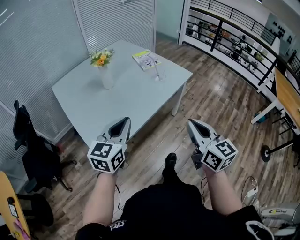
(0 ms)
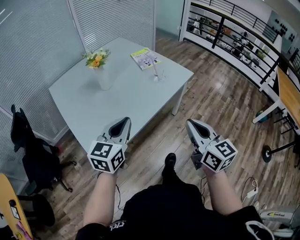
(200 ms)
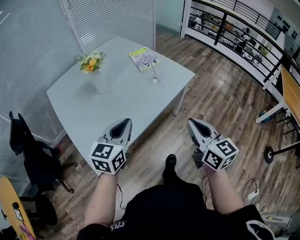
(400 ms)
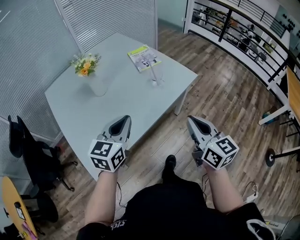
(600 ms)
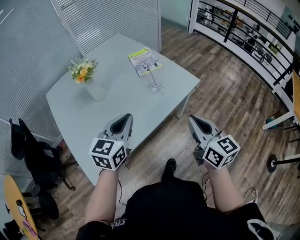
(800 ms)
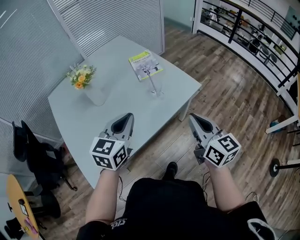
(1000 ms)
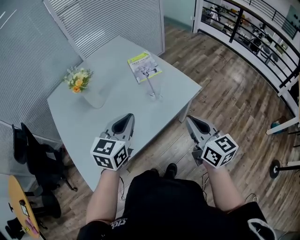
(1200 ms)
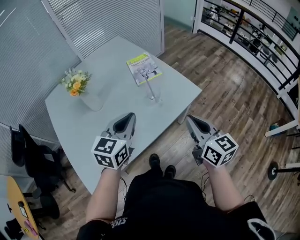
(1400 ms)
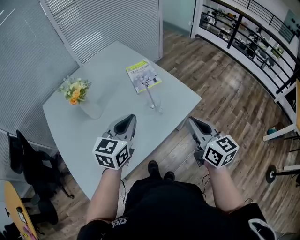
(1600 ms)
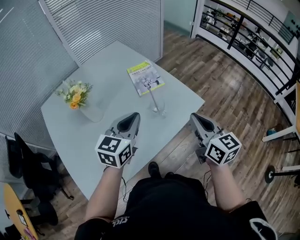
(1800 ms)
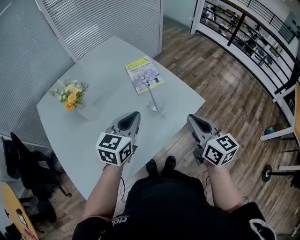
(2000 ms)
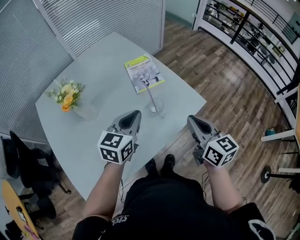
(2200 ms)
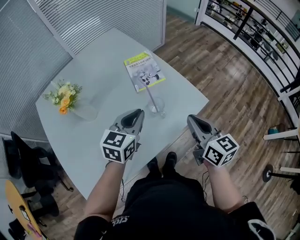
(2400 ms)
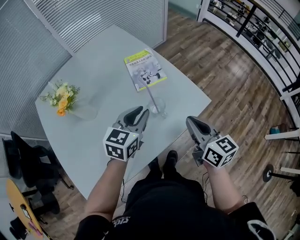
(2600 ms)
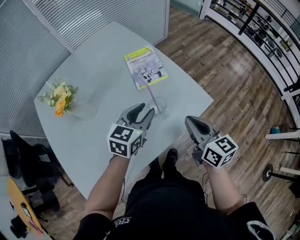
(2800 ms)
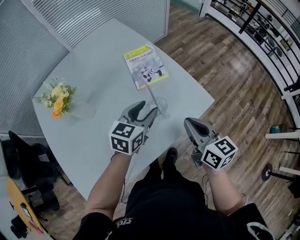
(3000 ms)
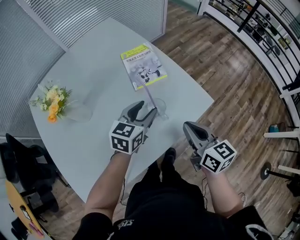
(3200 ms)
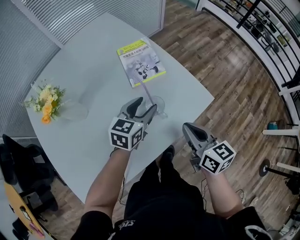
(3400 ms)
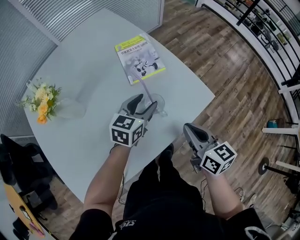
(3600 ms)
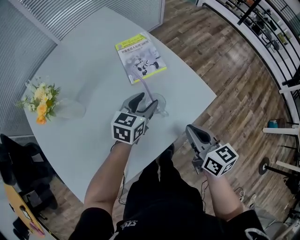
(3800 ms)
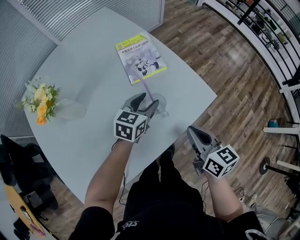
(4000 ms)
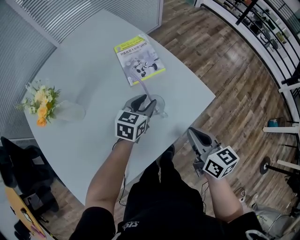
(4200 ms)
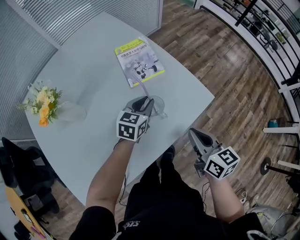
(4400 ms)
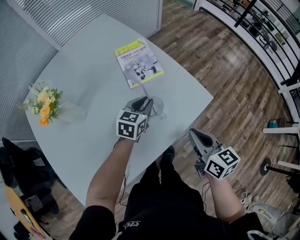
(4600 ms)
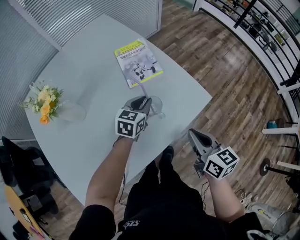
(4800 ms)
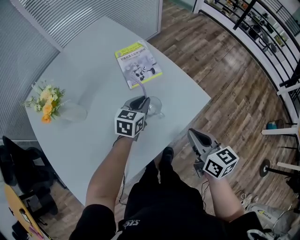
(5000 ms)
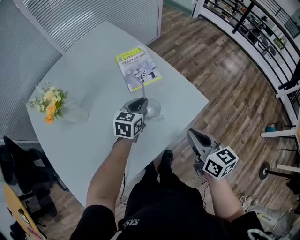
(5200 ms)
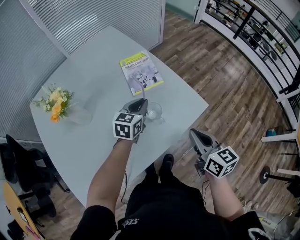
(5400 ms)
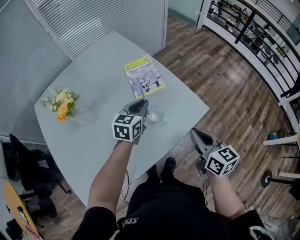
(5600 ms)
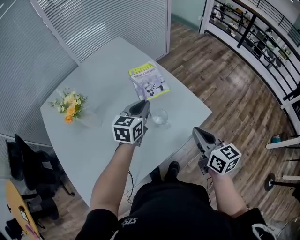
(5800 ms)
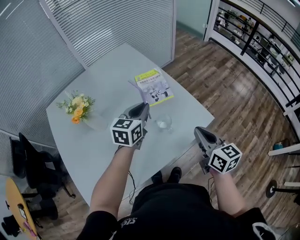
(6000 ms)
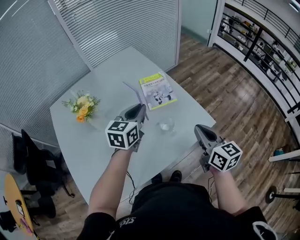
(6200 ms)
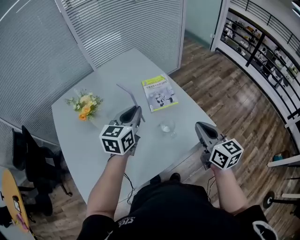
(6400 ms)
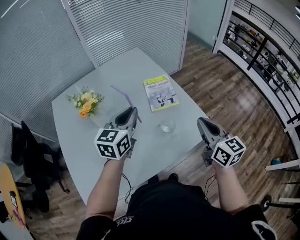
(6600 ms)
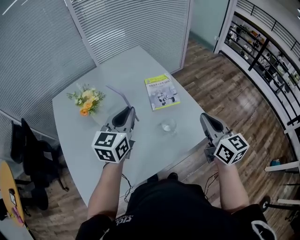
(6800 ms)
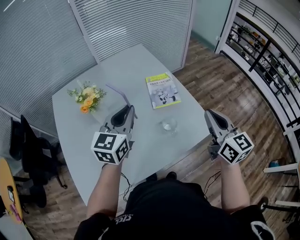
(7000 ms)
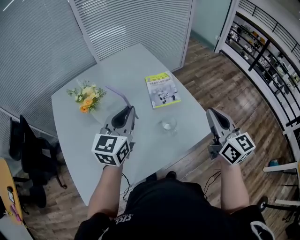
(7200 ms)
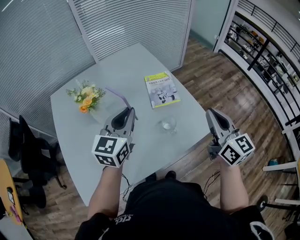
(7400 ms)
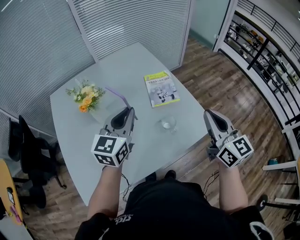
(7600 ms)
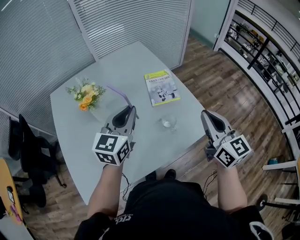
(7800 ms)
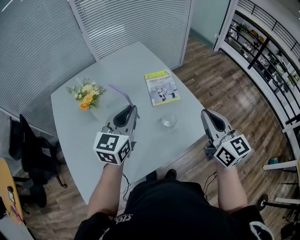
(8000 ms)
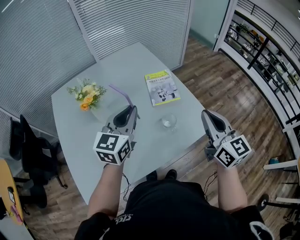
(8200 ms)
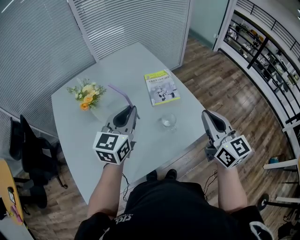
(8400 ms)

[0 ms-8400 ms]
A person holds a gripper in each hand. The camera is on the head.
0 ms to 1400 ms: The right gripper travels forward by approximately 35 cm, while the left gripper moves forward and to the right, about 35 cm.
1400 ms to 2800 ms: Both grippers travel together forward and downward, approximately 20 cm. The left gripper opens its fingers.
2800 ms to 4200 ms: The left gripper shifts roughly 15 cm downward and forward. Meanwhile the right gripper shifts some 5 cm downward.
4200 ms to 5600 ms: Both grippers travel together upward, about 10 cm. The left gripper closes up.
5600 ms to 7000 ms: The right gripper shifts roughly 15 cm upward and forward, and swivels roughly 20 degrees; the left gripper shifts about 20 cm upward and to the left, and rotates some 20 degrees.
7000 ms to 8400 ms: The grippers make only small movements.

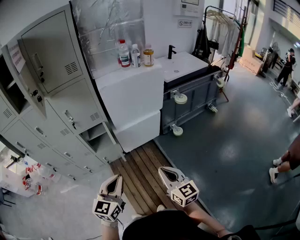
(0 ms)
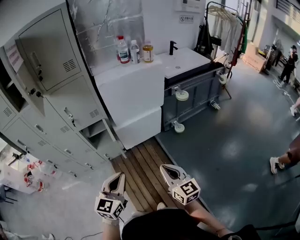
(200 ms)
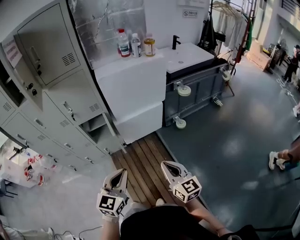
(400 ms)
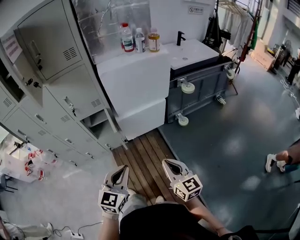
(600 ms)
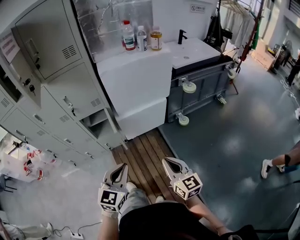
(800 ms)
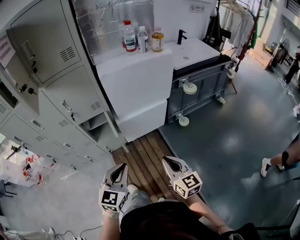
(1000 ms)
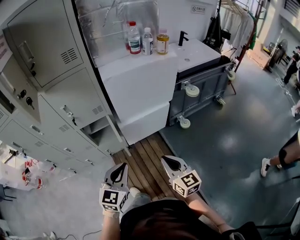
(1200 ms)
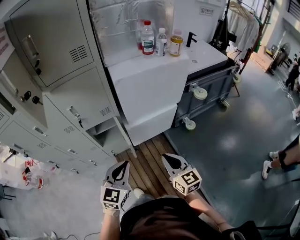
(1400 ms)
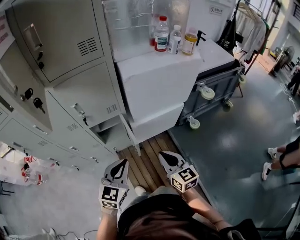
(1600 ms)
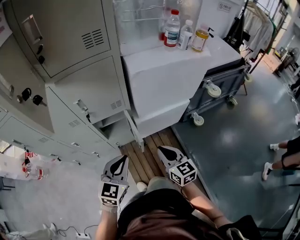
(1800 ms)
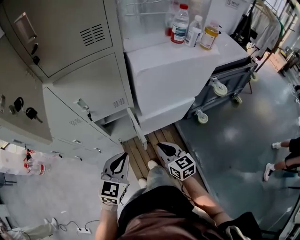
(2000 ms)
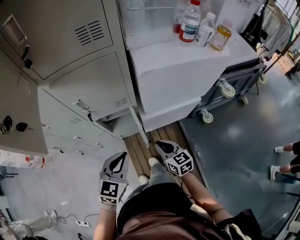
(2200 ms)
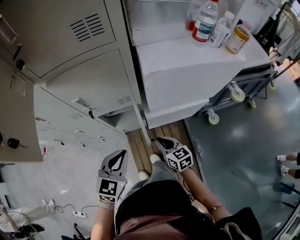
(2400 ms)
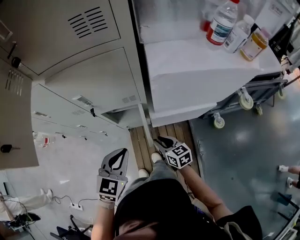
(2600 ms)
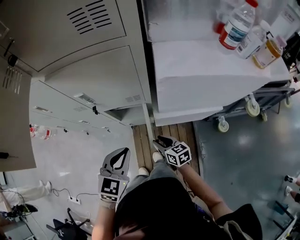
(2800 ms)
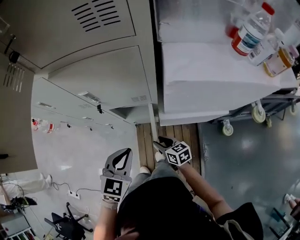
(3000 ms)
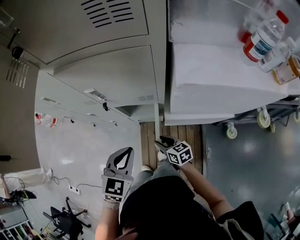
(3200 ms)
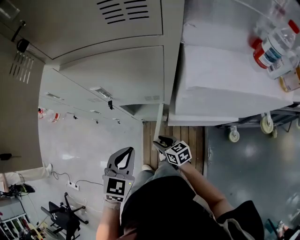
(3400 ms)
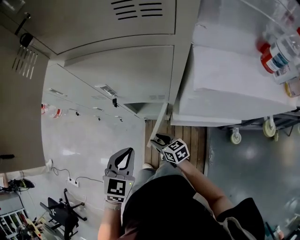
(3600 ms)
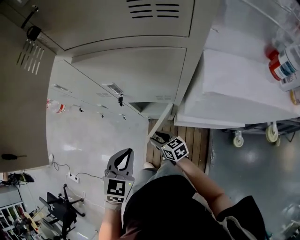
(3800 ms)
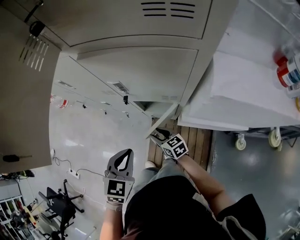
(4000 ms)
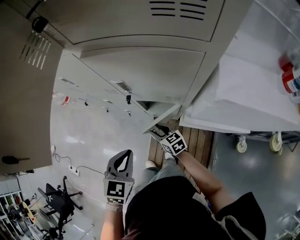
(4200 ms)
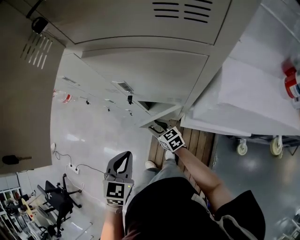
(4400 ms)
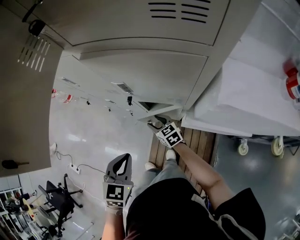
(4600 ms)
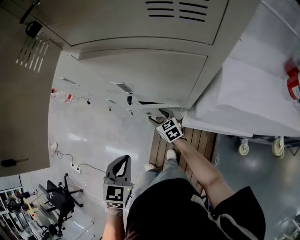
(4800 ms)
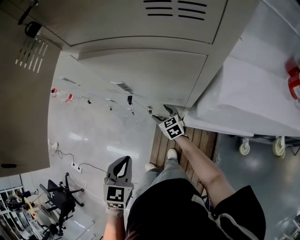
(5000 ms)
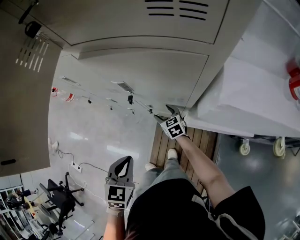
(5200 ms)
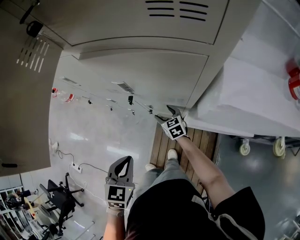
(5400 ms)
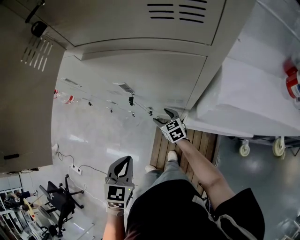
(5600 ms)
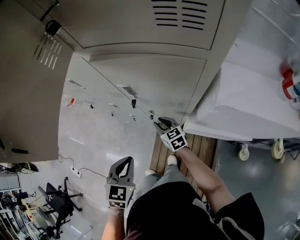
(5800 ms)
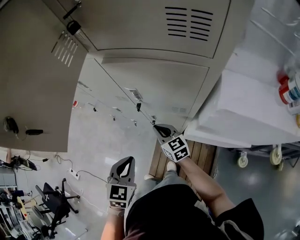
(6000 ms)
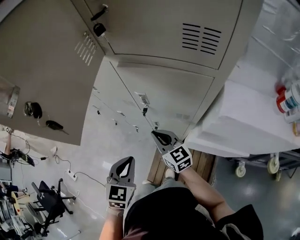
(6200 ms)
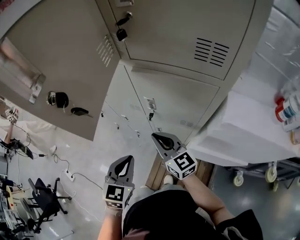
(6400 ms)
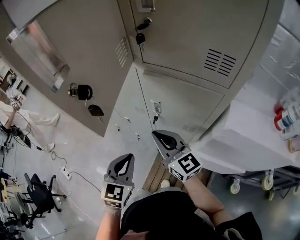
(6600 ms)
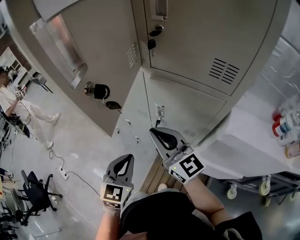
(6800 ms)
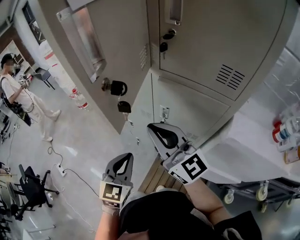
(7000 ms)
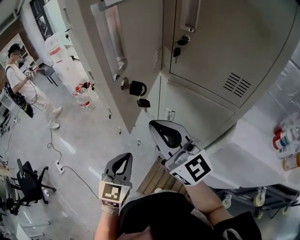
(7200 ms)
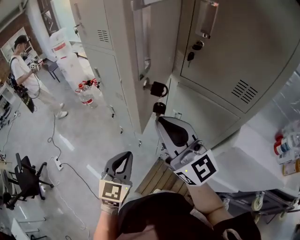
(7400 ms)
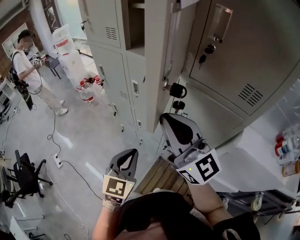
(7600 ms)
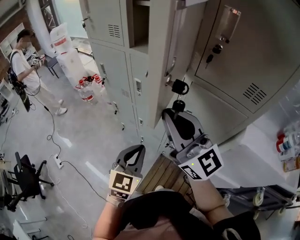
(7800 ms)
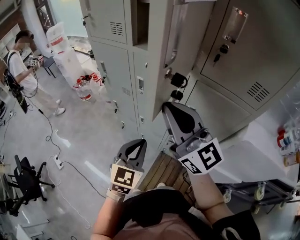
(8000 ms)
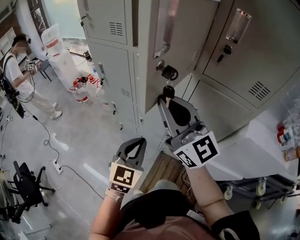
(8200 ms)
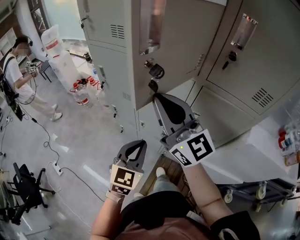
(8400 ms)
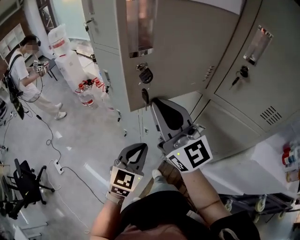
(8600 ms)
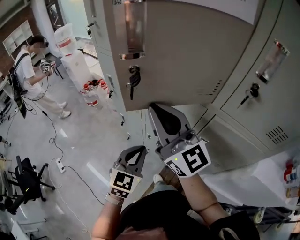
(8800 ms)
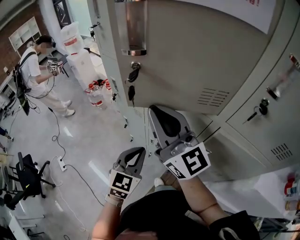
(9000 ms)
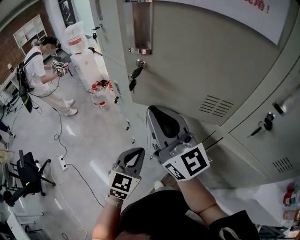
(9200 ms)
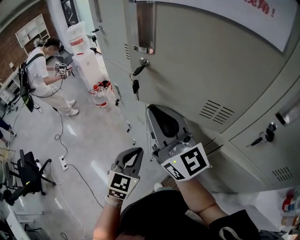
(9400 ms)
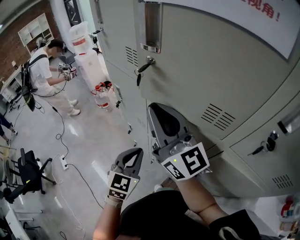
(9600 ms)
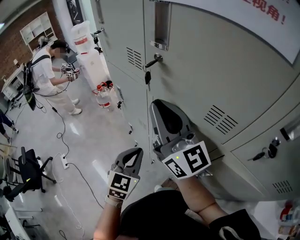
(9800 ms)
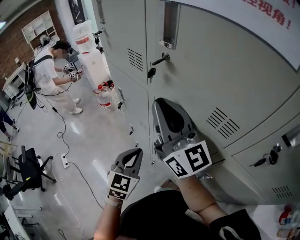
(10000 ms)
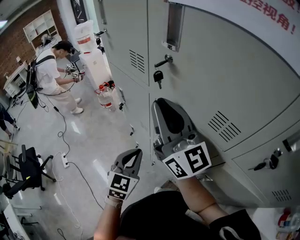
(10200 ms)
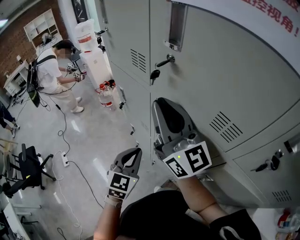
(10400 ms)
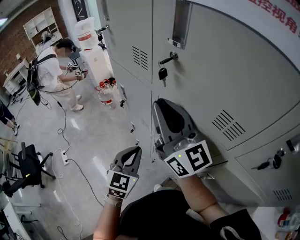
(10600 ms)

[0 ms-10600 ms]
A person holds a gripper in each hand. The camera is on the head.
0 ms to 1600 ms: The two grippers go some 25 cm forward and to the left.
1600 ms to 3000 ms: The right gripper moves downward, some 20 cm, changes its angle by about 40 degrees, and opens up; the left gripper moves approximately 15 cm, and turns by approximately 20 degrees.
3000 ms to 4600 ms: The right gripper heads forward and to the left, covering about 20 cm, and changes its angle by about 30 degrees. Meanwhile the left gripper goes about 10 cm to the left, and rotates some 20 degrees.
4600 ms to 6000 ms: The right gripper goes roughly 10 cm upward, and closes up.
6000 ms to 7600 ms: The left gripper shifts approximately 15 cm upward and to the left, and rotates roughly 20 degrees. The right gripper moves upward, about 40 cm, and angles its fingers upward, by about 40 degrees.
7600 ms to 9000 ms: The right gripper shifts about 20 cm forward and to the left. Meanwhile the left gripper moves forward, about 15 cm.
9000 ms to 10600 ms: Both grippers move forward, some 10 cm.

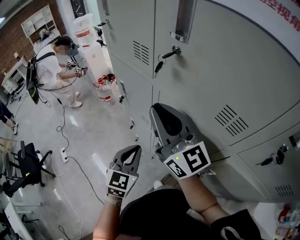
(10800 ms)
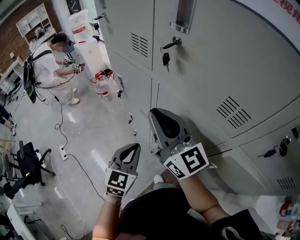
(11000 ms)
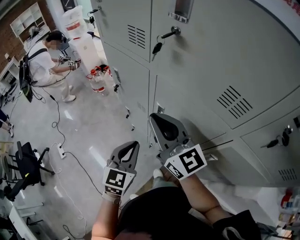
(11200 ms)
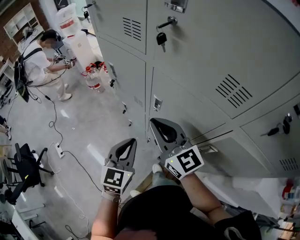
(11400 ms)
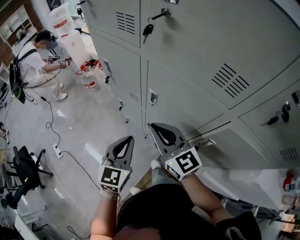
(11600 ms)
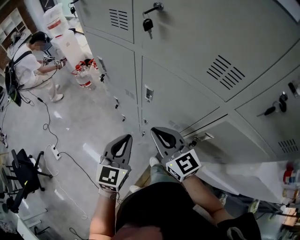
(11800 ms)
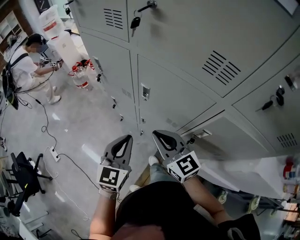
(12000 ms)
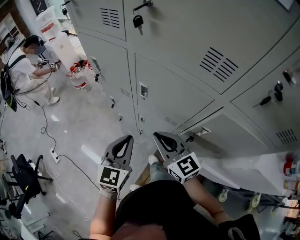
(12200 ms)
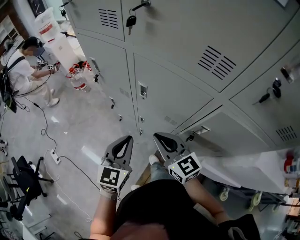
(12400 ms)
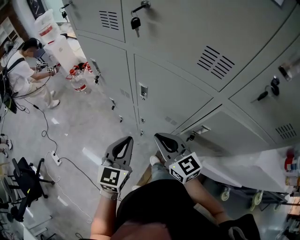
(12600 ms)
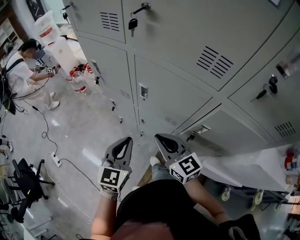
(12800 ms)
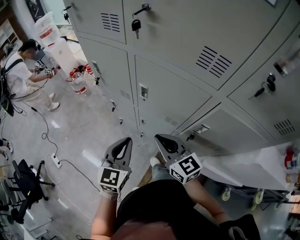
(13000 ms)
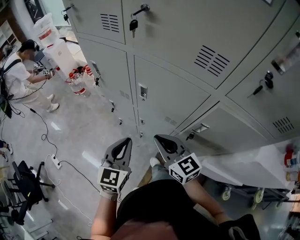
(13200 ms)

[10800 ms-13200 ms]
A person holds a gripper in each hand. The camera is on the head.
10800 ms to 12000 ms: The right gripper goes roughly 25 cm downward and backward, and changes its angle by about 30 degrees; the left gripper goes roughly 5 cm backward.
12000 ms to 13200 ms: The grippers stay close to where they were, moving slightly.

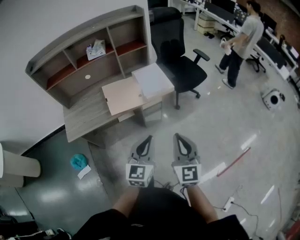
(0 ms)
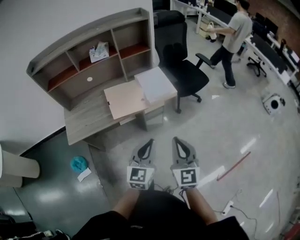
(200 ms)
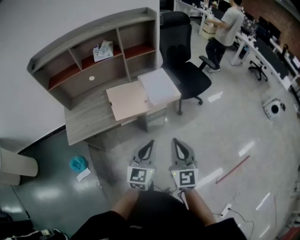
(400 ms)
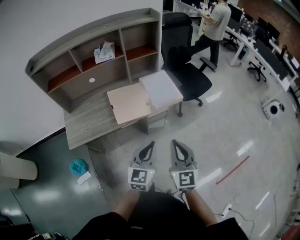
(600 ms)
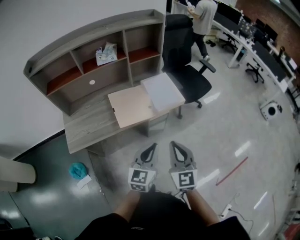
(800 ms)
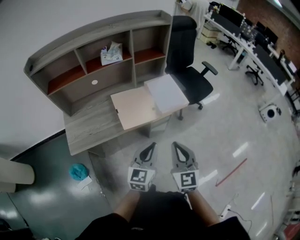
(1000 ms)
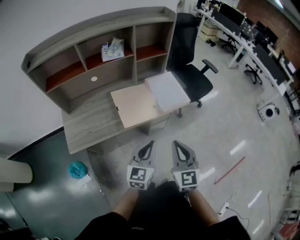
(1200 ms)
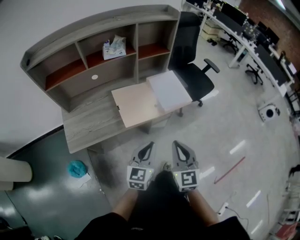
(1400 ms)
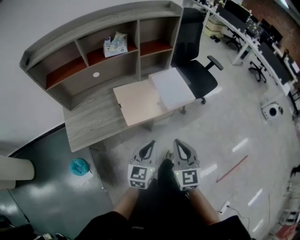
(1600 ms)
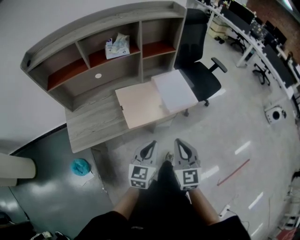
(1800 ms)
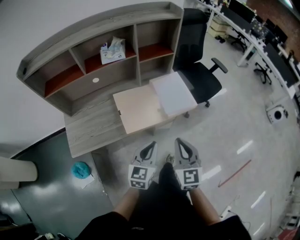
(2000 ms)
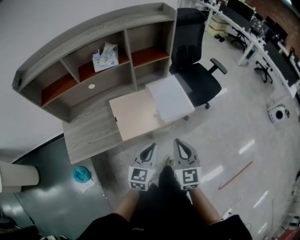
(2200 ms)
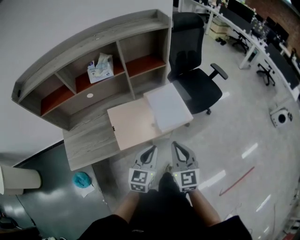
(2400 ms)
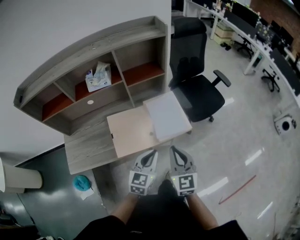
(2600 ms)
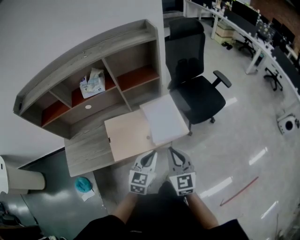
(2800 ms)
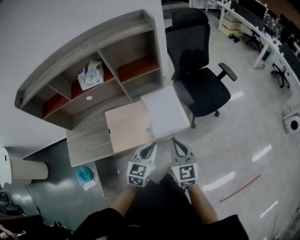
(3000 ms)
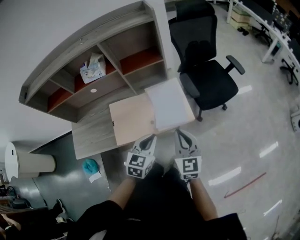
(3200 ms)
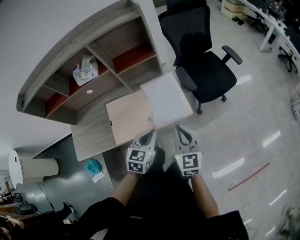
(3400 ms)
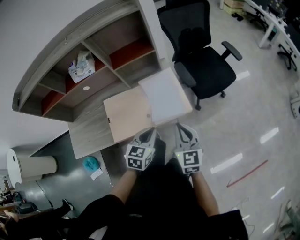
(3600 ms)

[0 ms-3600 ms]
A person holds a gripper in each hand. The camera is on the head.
0 ms to 1800 ms: The left gripper goes some 20 cm to the left, forward and downward. Meanwhile the right gripper heads to the left and forward, covering some 20 cm.
1800 ms to 3600 ms: The grippers both shift forward and to the right by about 25 cm.
